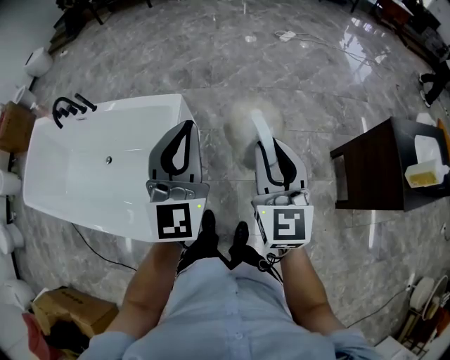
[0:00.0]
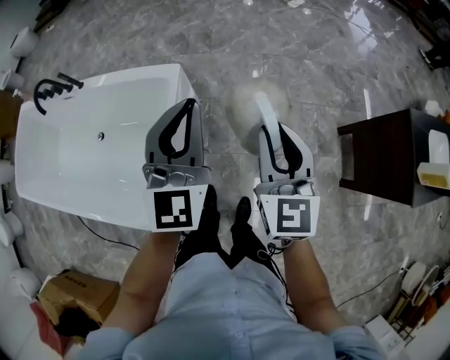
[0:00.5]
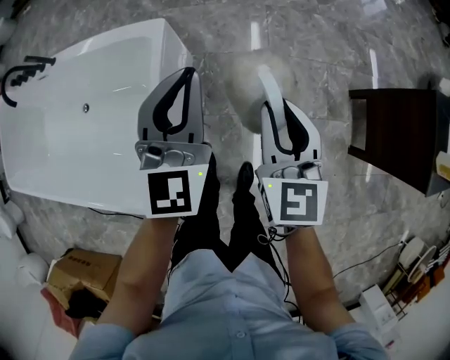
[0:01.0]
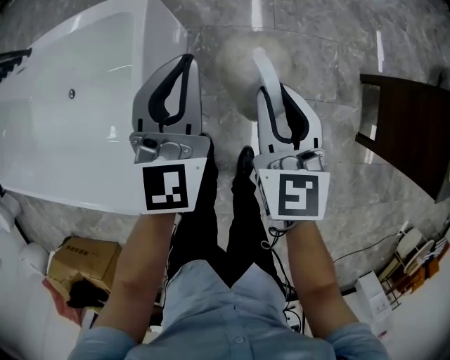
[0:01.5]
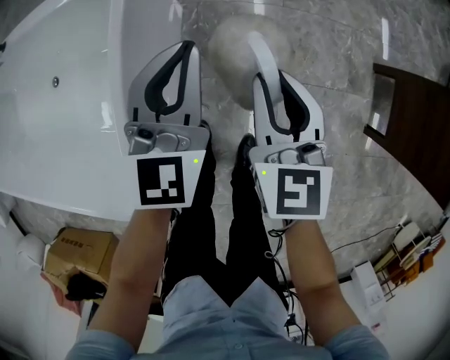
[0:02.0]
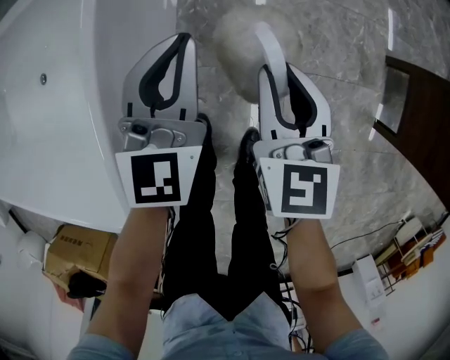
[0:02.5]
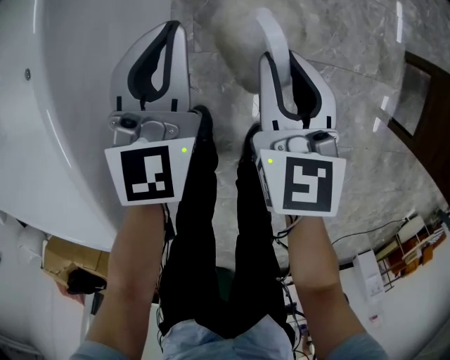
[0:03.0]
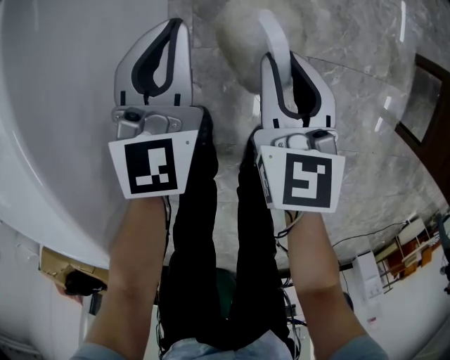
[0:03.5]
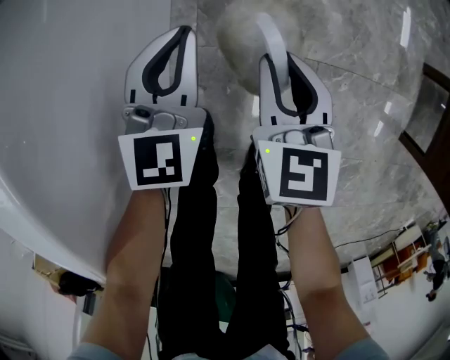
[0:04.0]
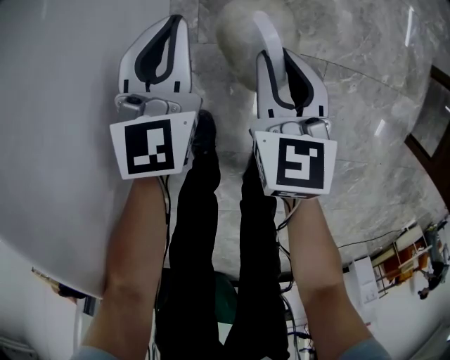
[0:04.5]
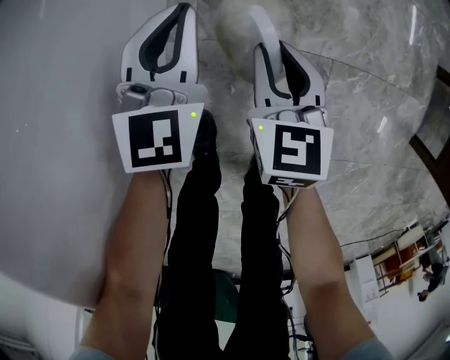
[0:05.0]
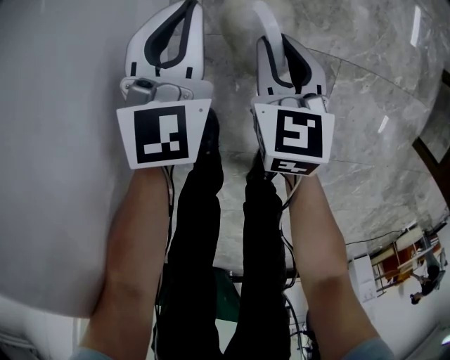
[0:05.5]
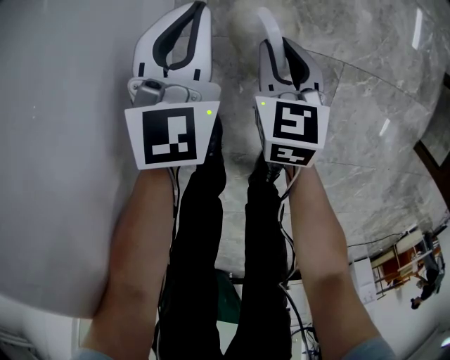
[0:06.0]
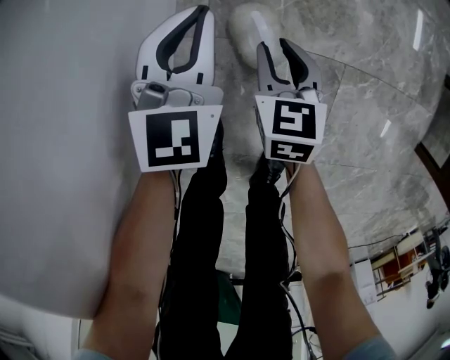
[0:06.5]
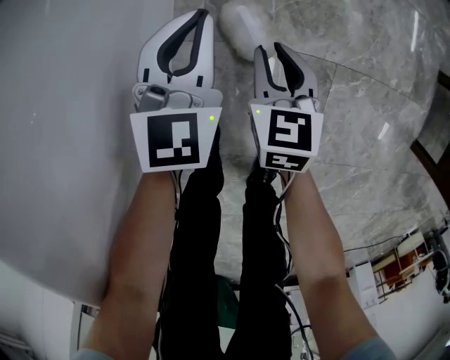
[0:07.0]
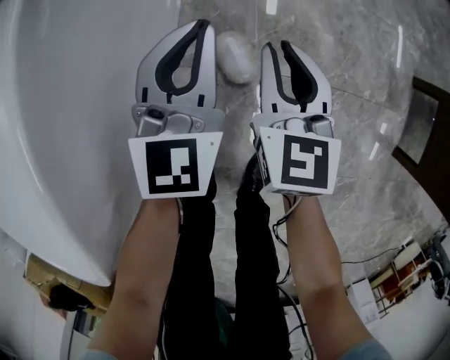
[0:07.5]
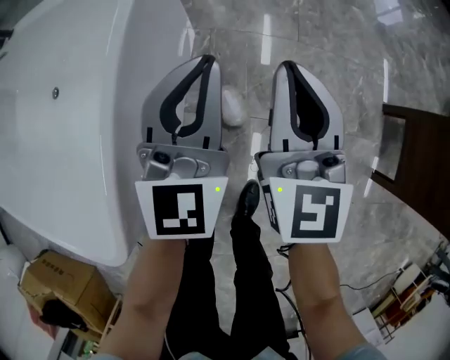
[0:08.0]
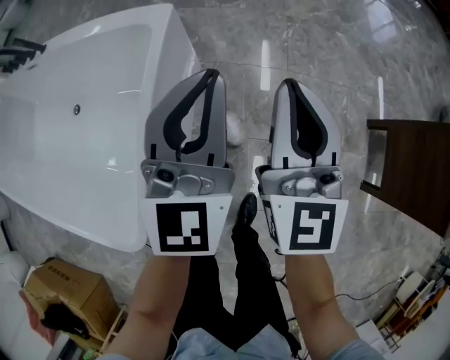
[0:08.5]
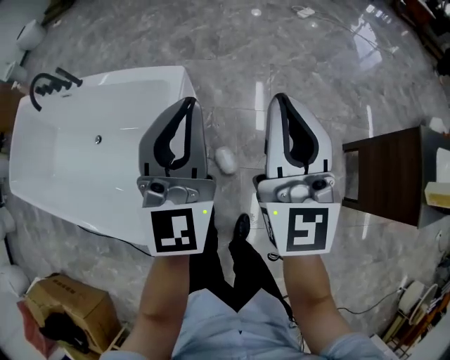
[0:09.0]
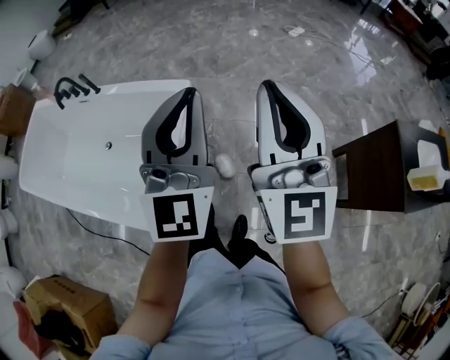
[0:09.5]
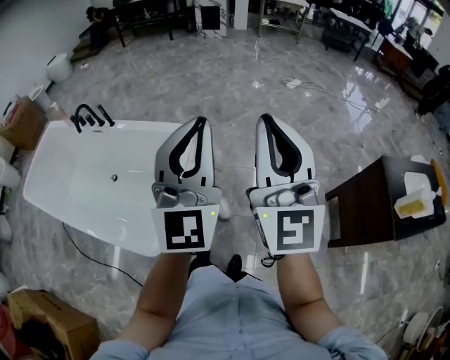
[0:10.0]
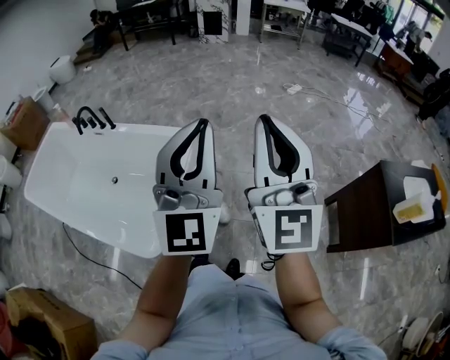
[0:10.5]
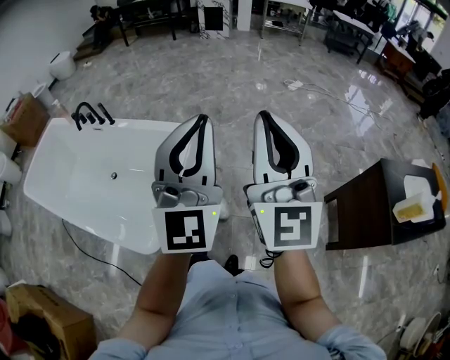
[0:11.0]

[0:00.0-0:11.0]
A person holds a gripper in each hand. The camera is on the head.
0:00.0 to 0:02.0: Both grippers travel together downward, some 40 cm. The left gripper swivels approximately 20 degrees. Meanwhile the right gripper rotates about 20 degrees.
0:02.0 to 0:03.5: The two grippers go some 25 cm downward.
0:03.5 to 0:05.5: Both grippers travel together downward, some 20 cm.
0:05.5 to 0:07.5: The grippers both shift upward by roughly 15 cm.
0:07.5 to 0:09.0: Both grippers move upward, roughly 60 cm. The left gripper swivels approximately 20 degrees; the right gripper angles its fingers upward, by roughly 40 degrees.
0:09.0 to 0:11.0: Both grippers move upward and backward, about 25 cm.

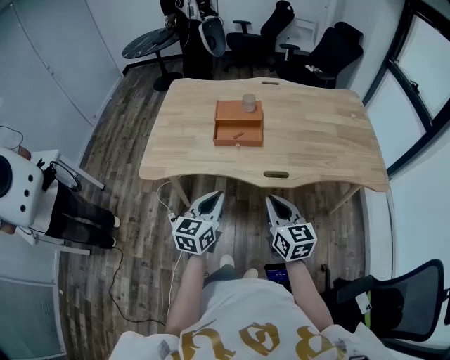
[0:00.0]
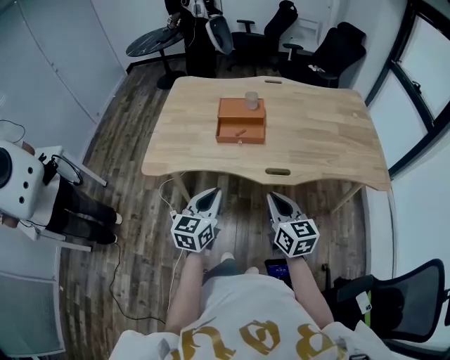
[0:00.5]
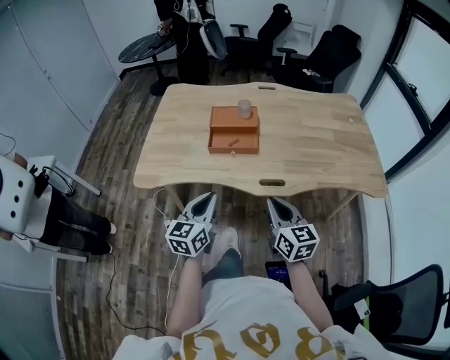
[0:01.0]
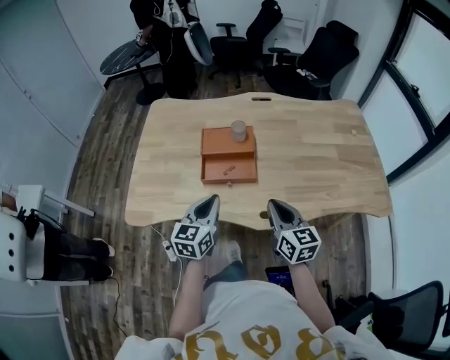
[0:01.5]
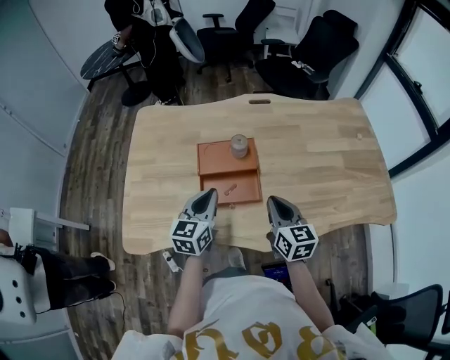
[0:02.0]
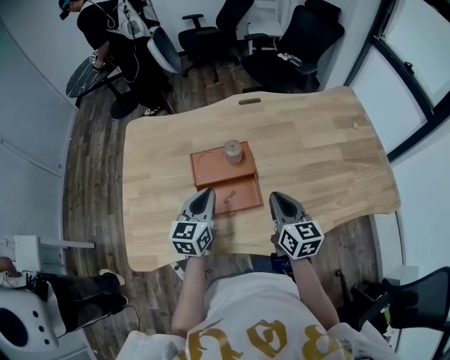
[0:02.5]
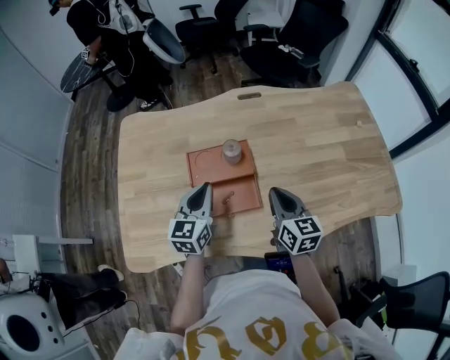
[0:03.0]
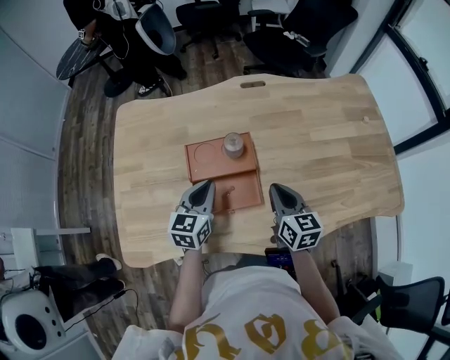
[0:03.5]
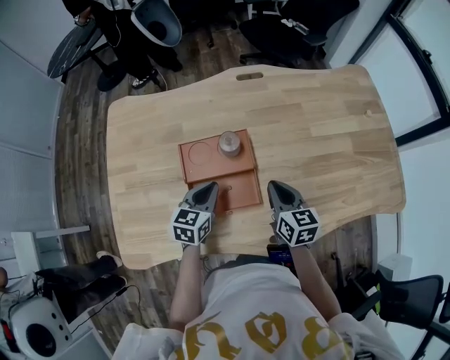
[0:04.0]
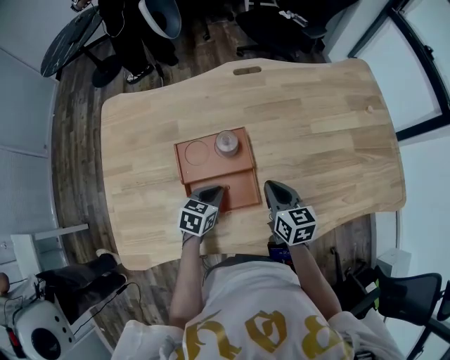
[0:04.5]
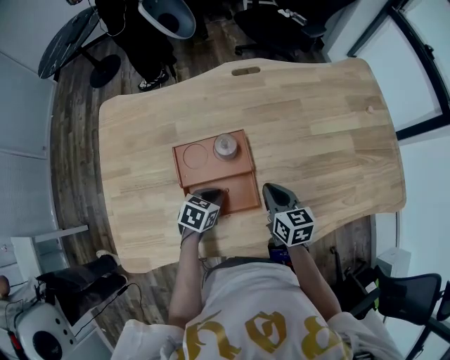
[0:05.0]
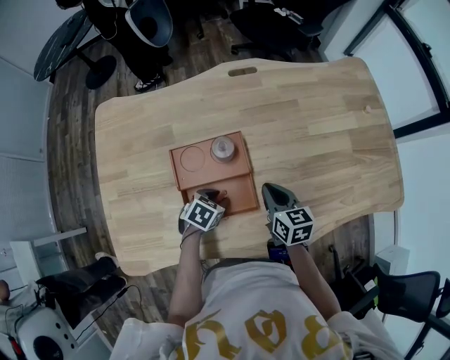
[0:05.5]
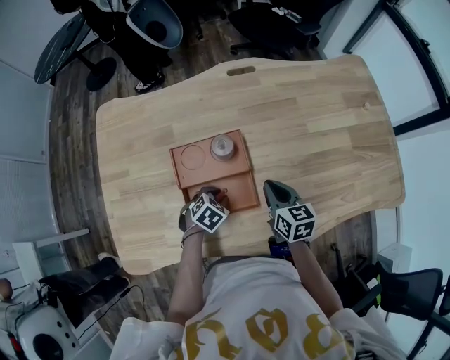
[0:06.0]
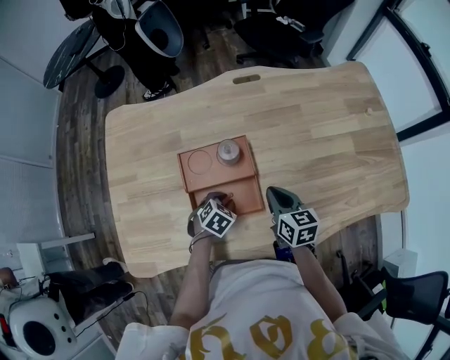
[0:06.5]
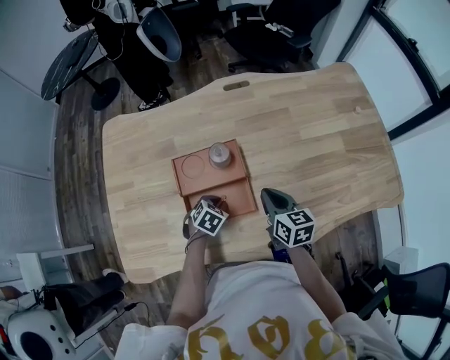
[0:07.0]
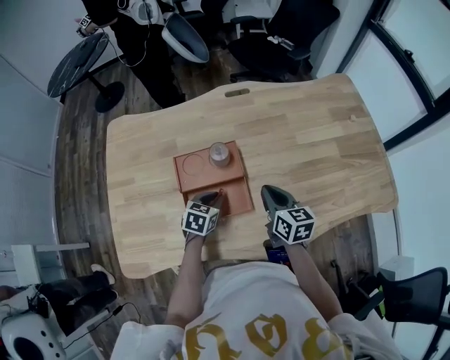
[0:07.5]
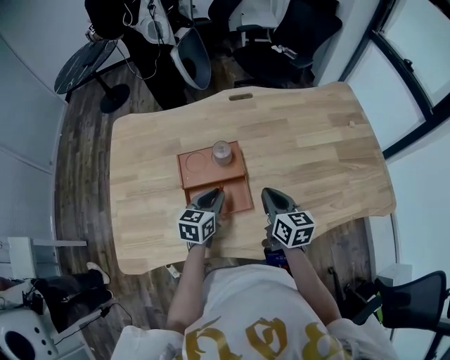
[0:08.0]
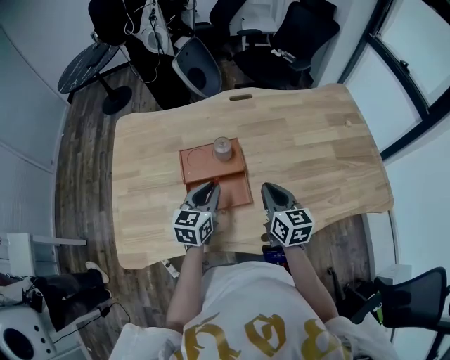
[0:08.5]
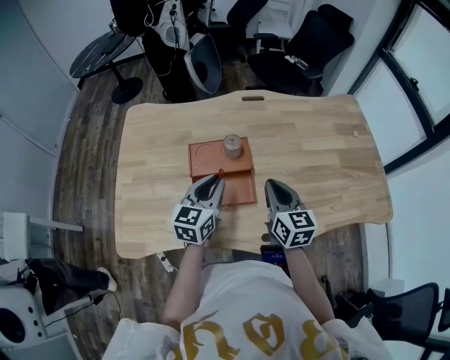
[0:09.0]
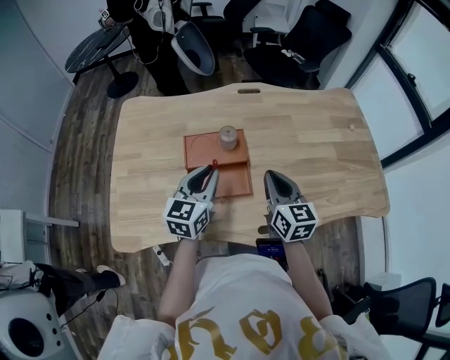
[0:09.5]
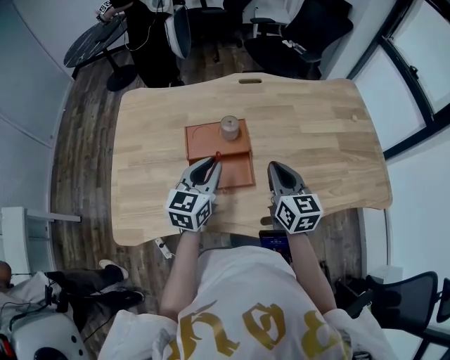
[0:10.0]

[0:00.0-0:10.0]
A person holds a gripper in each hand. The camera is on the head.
0:00.0 to 0:02.0: Both grippers travel together forward, roughly 35 cm.
0:02.0 to 0:04.0: The left gripper heads downward and forward, covering some 15 cm. The right gripper travels forward and downward by approximately 15 cm.
0:04.0 to 0:06.0: The left gripper is displaced downward by approximately 10 cm, and tips its fingers downward by about 30 degrees.
0:06.0 to 0:08.0: The left gripper goes some 15 cm upward, and tilts its fingers approximately 40 degrees upward. Meanwhile the right gripper goes roughly 5 cm upward.
0:08.0 to 0:10.0: The left gripper goes roughly 10 cm upward. Meanwhile the right gripper goes about 5 cm upward.

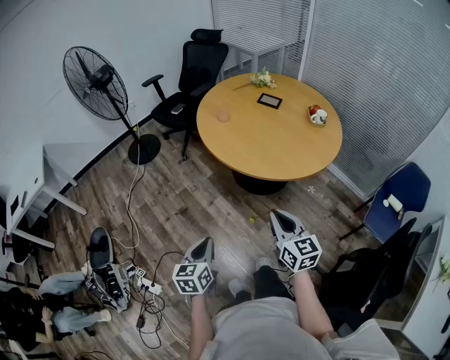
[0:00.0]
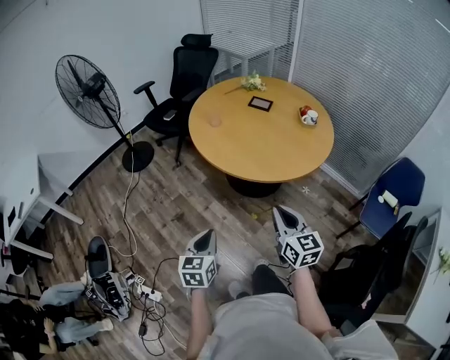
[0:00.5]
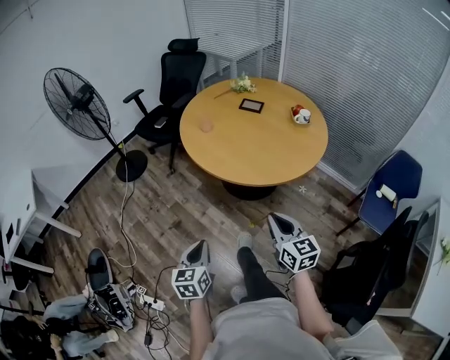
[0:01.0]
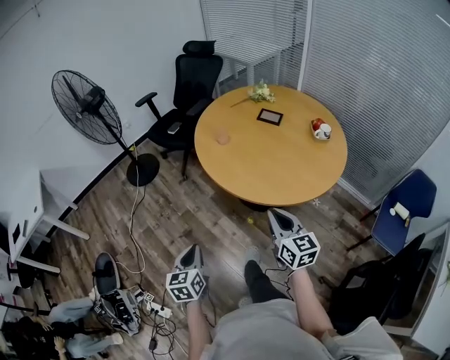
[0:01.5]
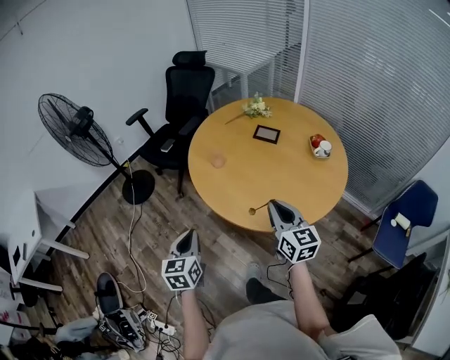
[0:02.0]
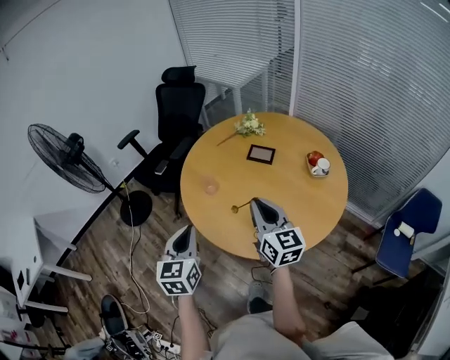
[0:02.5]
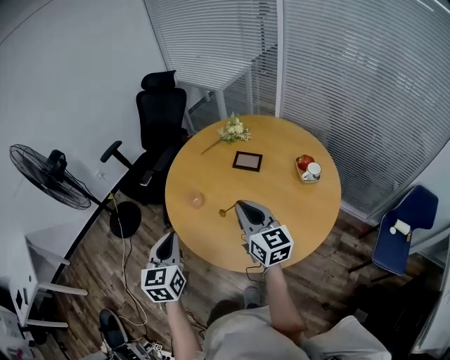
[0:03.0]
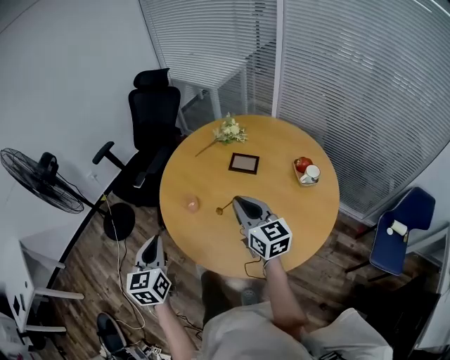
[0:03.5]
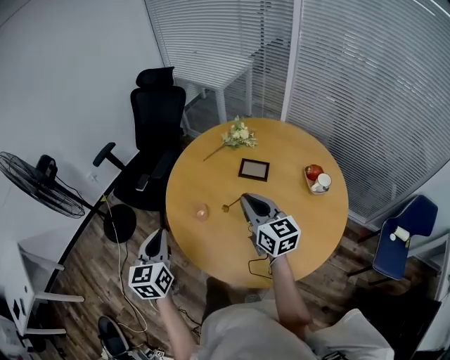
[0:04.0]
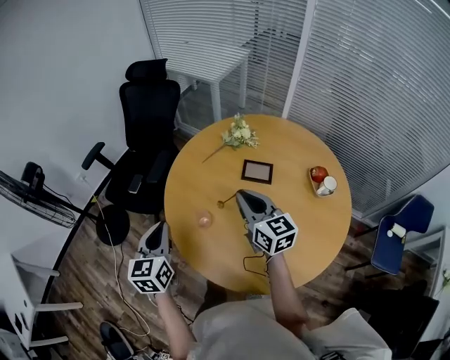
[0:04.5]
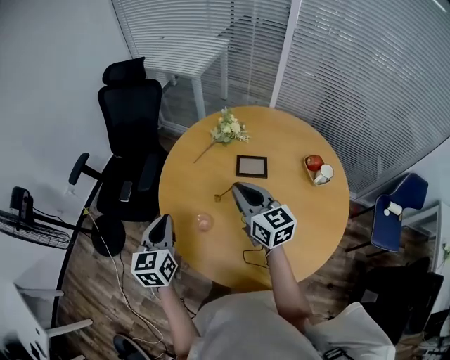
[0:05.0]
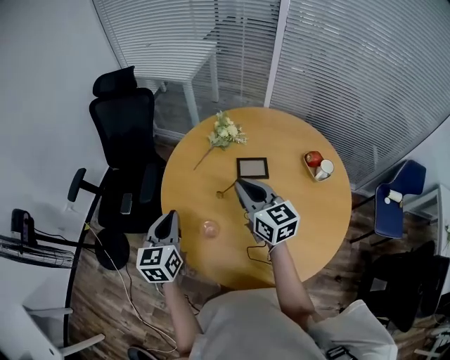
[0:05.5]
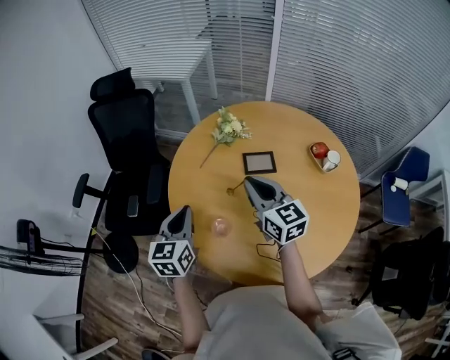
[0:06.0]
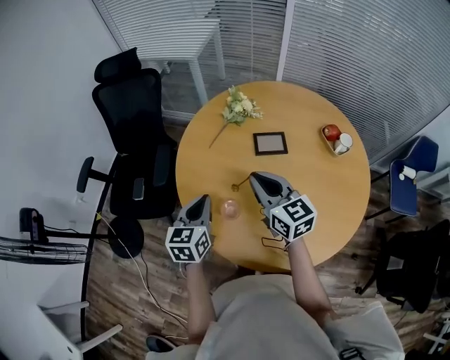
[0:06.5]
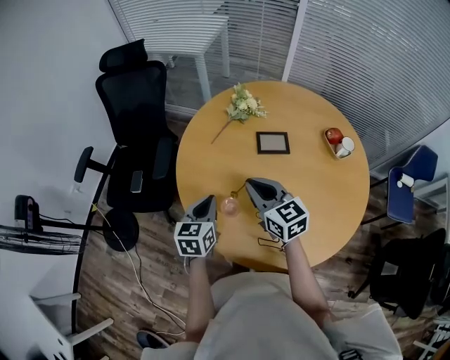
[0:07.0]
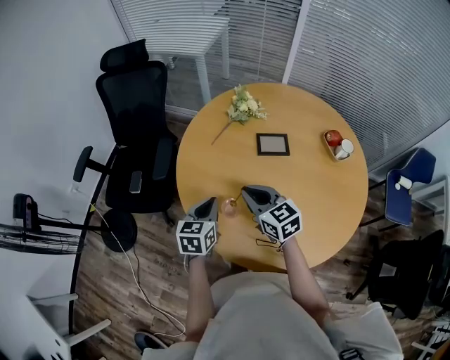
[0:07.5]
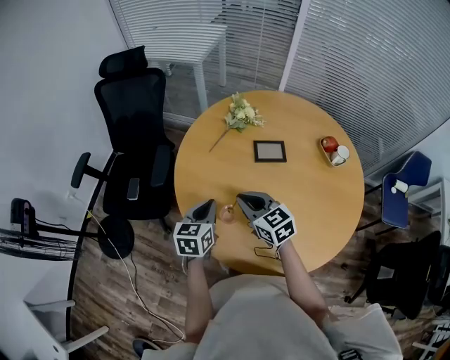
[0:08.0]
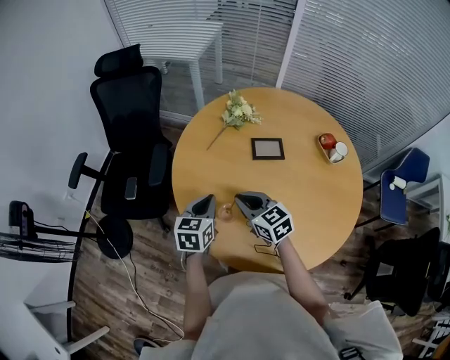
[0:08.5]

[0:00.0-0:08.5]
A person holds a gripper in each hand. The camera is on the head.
0:00.0 to 0:02.0: Both grippers travel together forward, approximately 30 cm.
0:02.0 to 0:04.0: The grippers both shift forward by approximately 30 cm.
0:04.0 to 0:06.5: The left gripper travels forward and downward by roughly 25 cm, and turns by approximately 30 degrees. Meanwhile the right gripper goes roughly 15 cm forward and to the left.
0:06.5 to 0:08.5: The right gripper goes approximately 10 cm downward and to the left; the left gripper moves approximately 5 cm.
